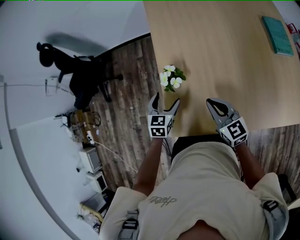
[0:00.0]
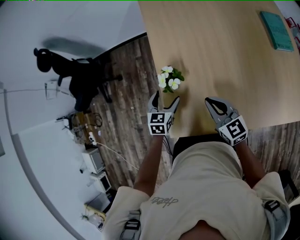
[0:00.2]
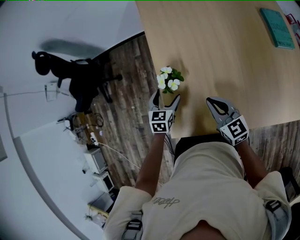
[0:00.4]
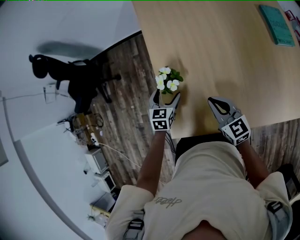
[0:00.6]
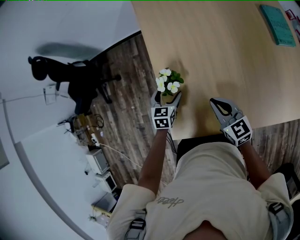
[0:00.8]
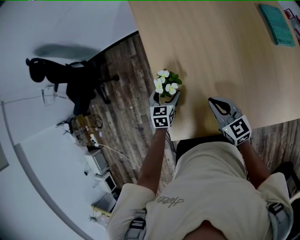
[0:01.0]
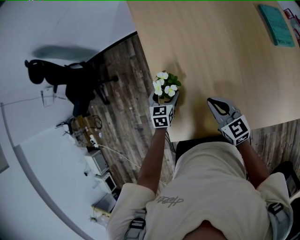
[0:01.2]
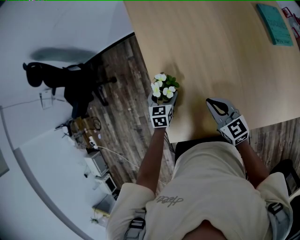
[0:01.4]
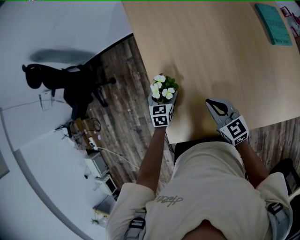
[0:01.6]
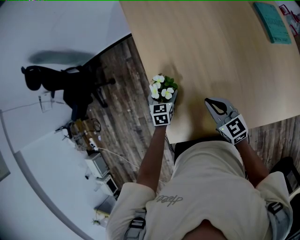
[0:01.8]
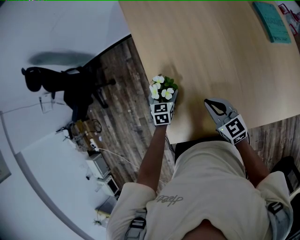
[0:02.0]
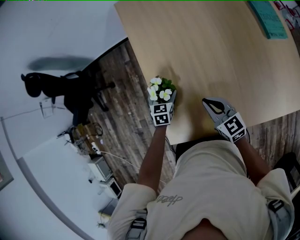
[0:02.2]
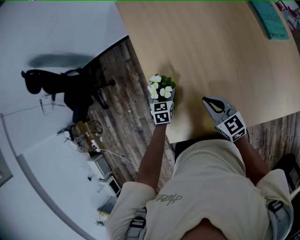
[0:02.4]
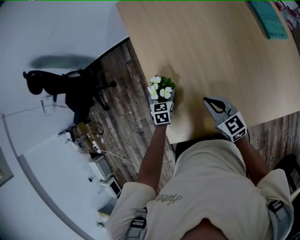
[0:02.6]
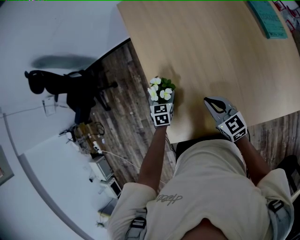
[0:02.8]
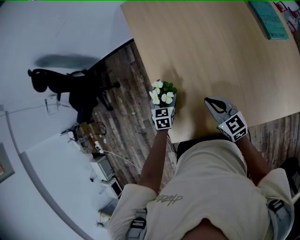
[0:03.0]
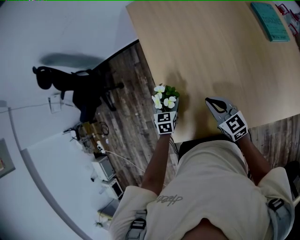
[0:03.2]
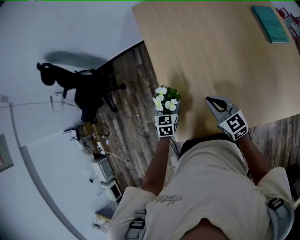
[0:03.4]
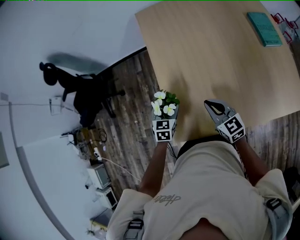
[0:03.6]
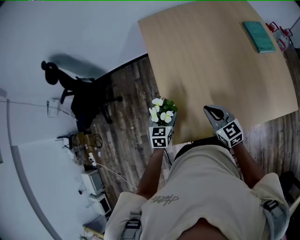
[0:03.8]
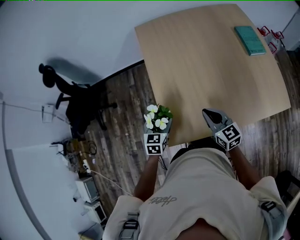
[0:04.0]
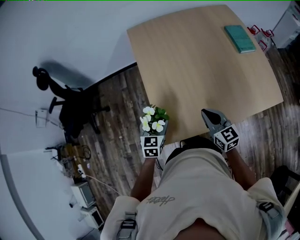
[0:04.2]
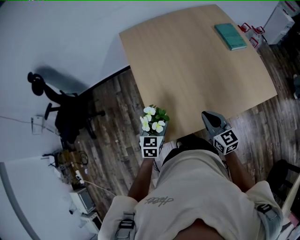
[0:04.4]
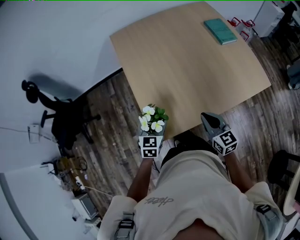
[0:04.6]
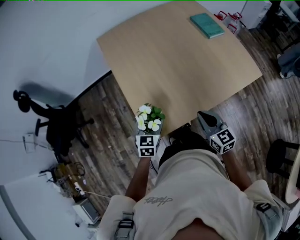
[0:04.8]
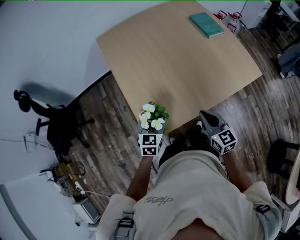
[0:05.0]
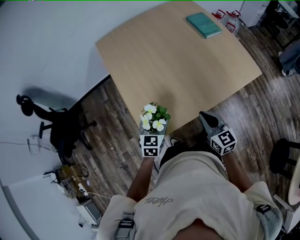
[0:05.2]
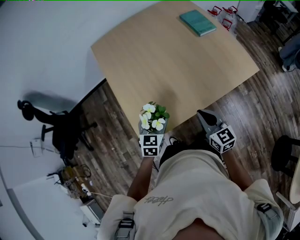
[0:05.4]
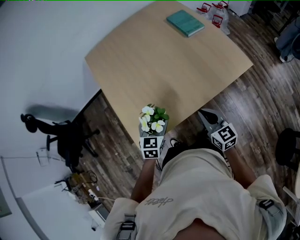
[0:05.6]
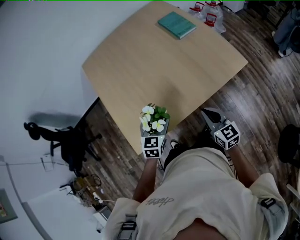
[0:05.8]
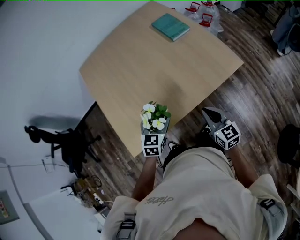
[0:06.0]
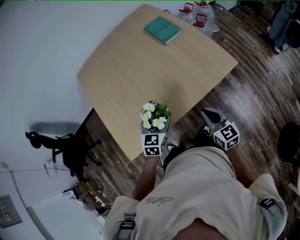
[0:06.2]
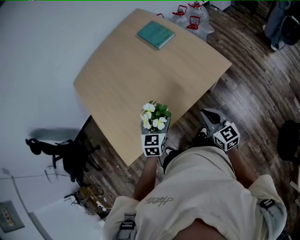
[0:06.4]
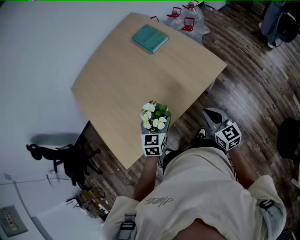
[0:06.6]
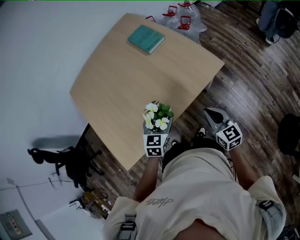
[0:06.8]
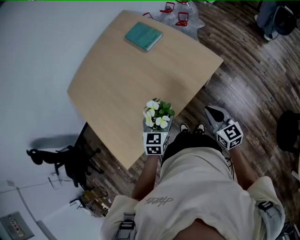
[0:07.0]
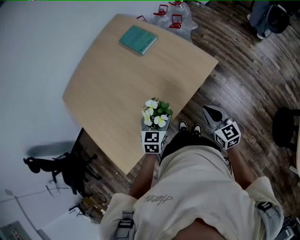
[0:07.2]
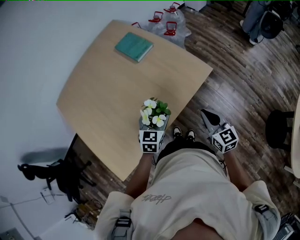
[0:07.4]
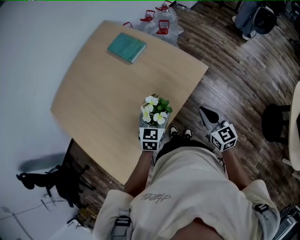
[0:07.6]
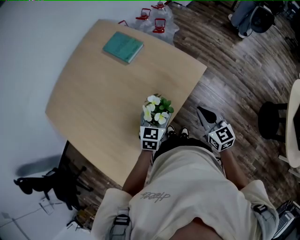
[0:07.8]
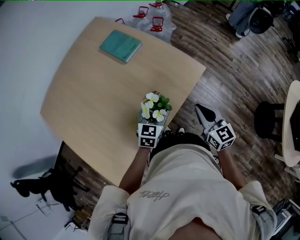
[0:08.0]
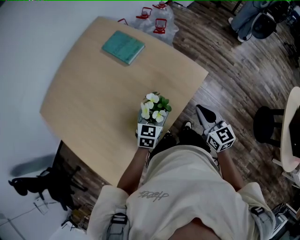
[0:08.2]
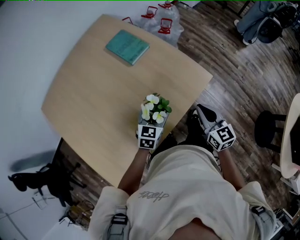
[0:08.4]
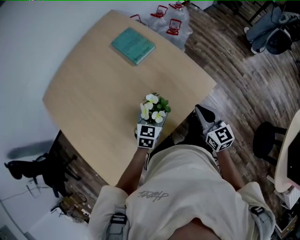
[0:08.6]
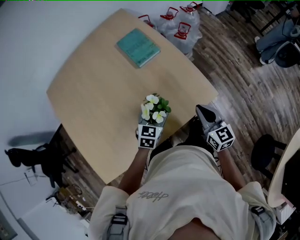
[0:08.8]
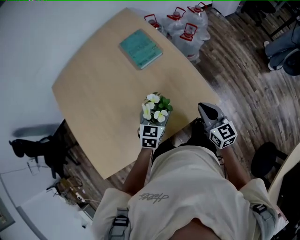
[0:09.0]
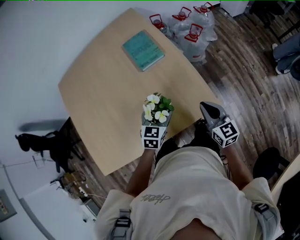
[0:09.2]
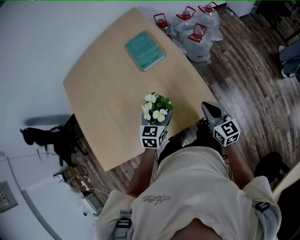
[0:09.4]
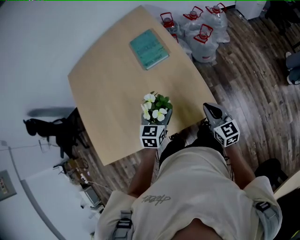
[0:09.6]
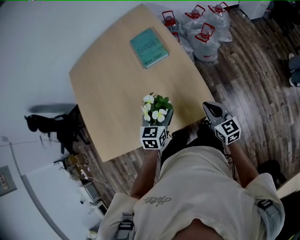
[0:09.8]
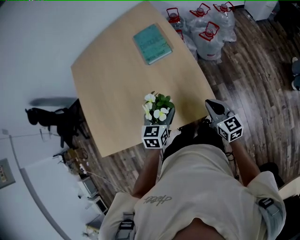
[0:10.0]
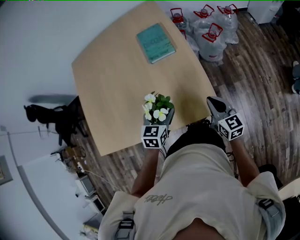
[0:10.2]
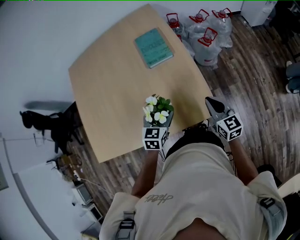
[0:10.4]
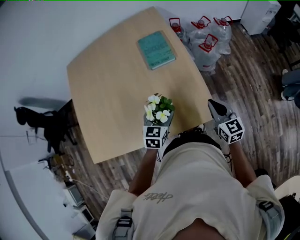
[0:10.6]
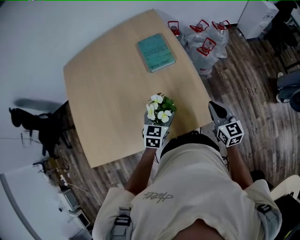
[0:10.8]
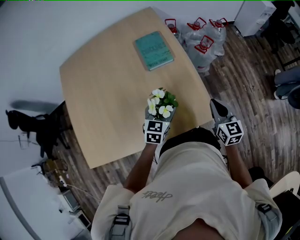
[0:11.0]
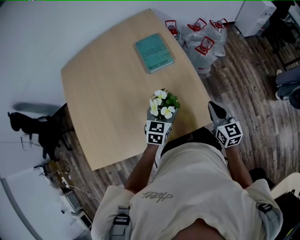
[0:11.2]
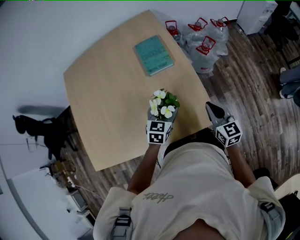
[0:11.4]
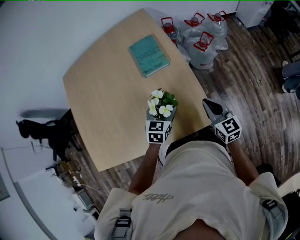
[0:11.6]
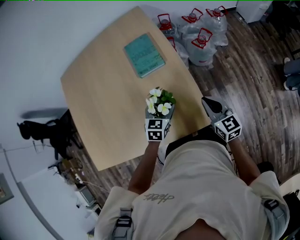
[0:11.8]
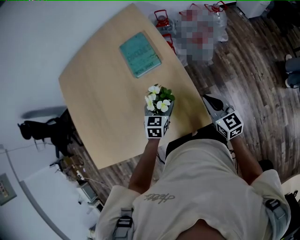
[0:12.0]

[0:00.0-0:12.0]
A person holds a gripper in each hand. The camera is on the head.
0.0 to 1.6 s: The right gripper shifts by some 5 cm. The left gripper moves downward and forward, some 10 cm.
1.6 to 3.0 s: The grippers stay close to where they were, moving slightly.
3.0 to 4.4 s: Both grippers move backward and upward, roughly 15 cm. The right gripper swivels about 20 degrees.
4.4 to 6.0 s: The grippers both shift to the right by some 25 cm.
6.0 to 7.6 s: Both grippers travel together to the right and forward, some 20 cm. The left gripper changes its angle by about 20 degrees.
7.6 to 9.0 s: Both grippers move forward, roughly 15 cm.
9.0 to 10.4 s: The right gripper is displaced to the right and forward by about 10 cm.
10.4 to 12.0 s: The left gripper heads forward and to the right, covering approximately 15 cm. The right gripper goes some 5 cm forward.

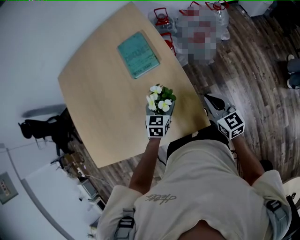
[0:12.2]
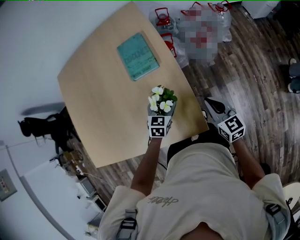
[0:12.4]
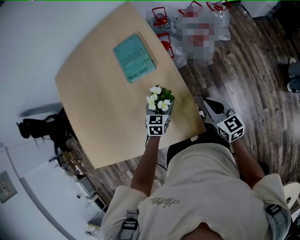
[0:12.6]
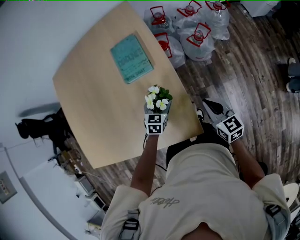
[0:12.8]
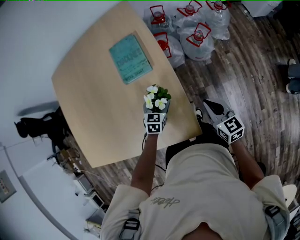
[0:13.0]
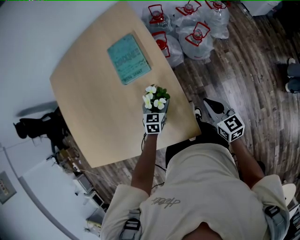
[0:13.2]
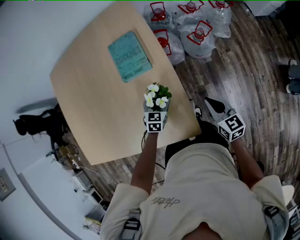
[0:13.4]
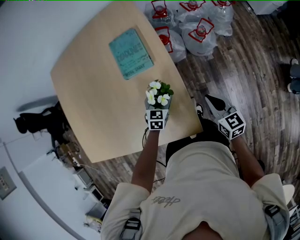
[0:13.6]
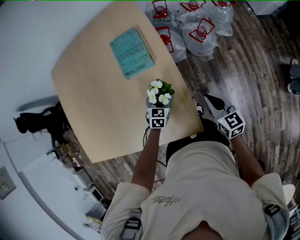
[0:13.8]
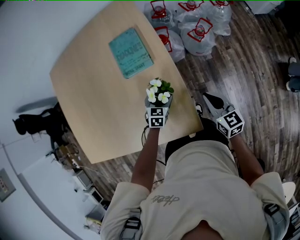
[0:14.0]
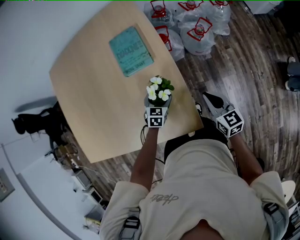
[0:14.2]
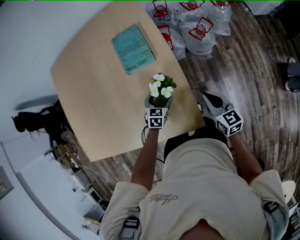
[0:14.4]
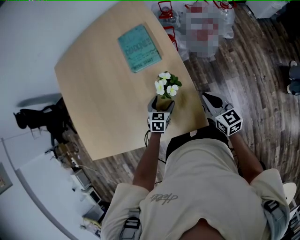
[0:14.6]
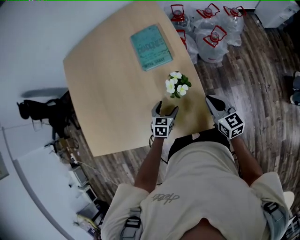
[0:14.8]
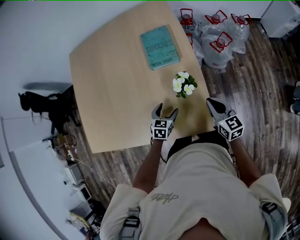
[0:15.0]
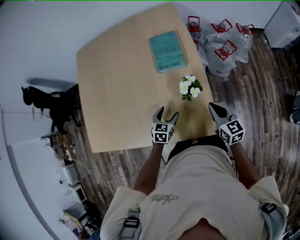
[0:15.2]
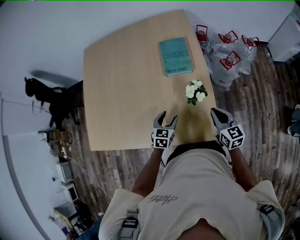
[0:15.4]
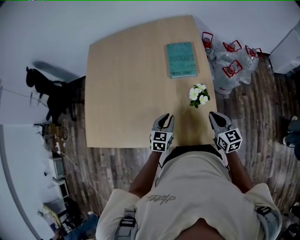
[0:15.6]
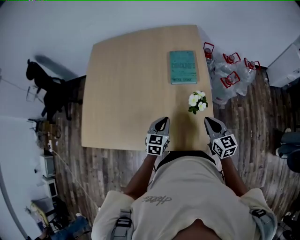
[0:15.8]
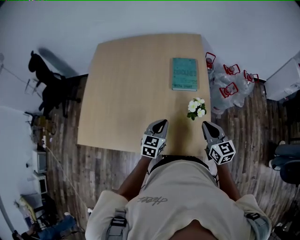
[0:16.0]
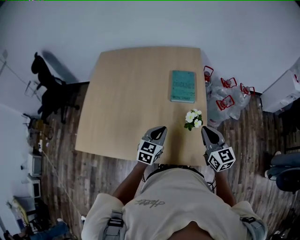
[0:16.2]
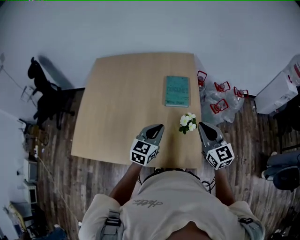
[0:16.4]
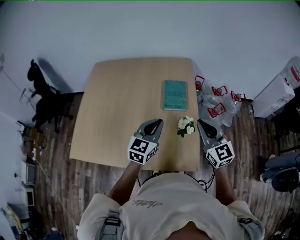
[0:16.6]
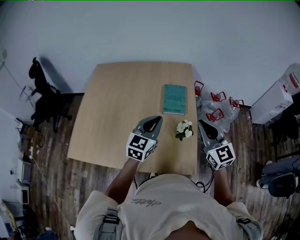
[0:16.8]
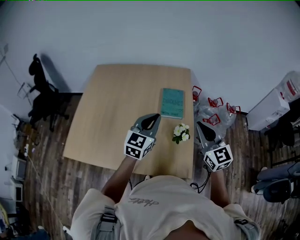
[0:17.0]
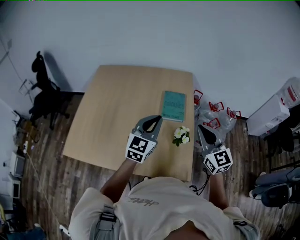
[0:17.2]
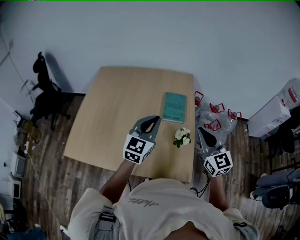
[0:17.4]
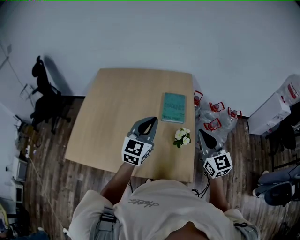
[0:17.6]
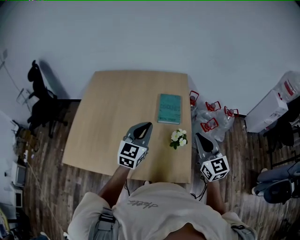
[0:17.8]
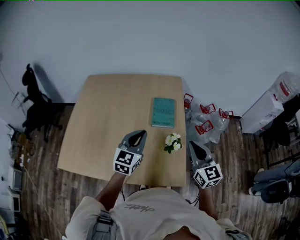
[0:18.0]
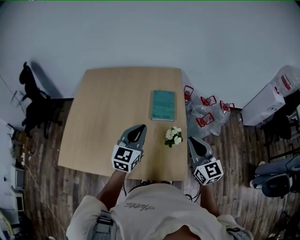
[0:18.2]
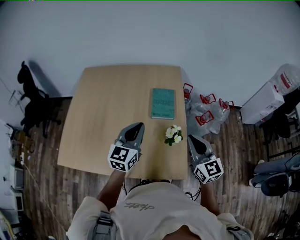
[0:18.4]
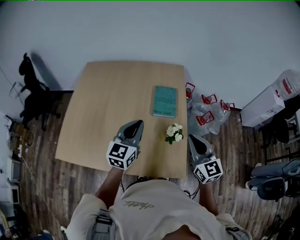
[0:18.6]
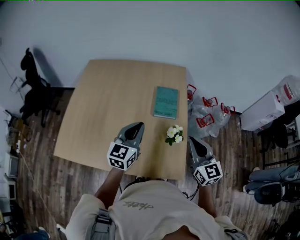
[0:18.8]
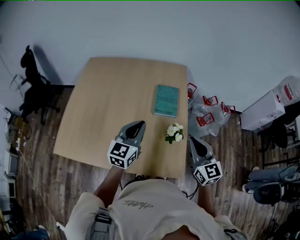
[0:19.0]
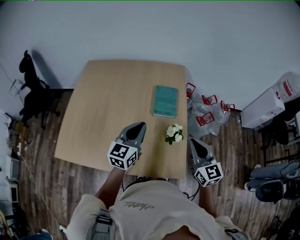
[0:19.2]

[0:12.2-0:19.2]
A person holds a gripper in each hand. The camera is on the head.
12.2 to 13.6 s: The right gripper changes place by approximately 5 cm; the left gripper moves downward, some 5 cm.
13.6 to 15.0 s: The left gripper heads to the left and backward, covering about 15 cm; the right gripper shifts some 10 cm to the left.
15.0 to 16.4 s: The two grippers go roughly 20 cm upward. The right gripper changes its angle by roughly 30 degrees; the left gripper swivels roughly 30 degrees, and closes up.
16.4 to 17.8 s: The left gripper shifts some 10 cm upward.
17.8 to 19.2 s: The grippers make only small movements.

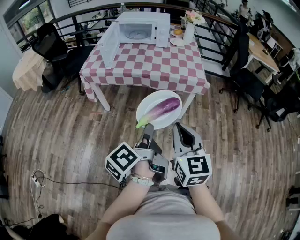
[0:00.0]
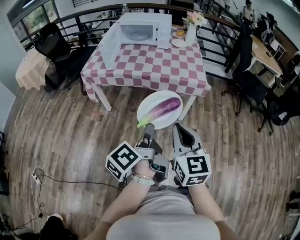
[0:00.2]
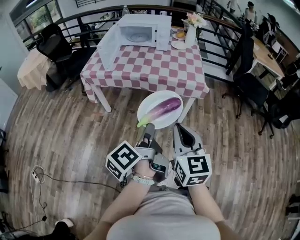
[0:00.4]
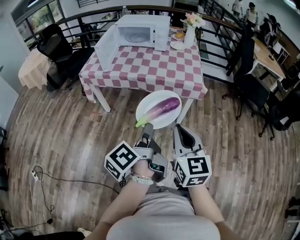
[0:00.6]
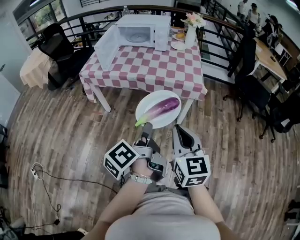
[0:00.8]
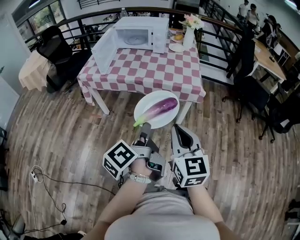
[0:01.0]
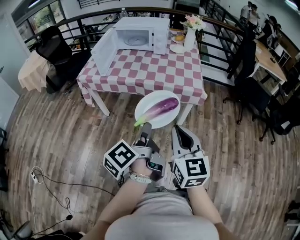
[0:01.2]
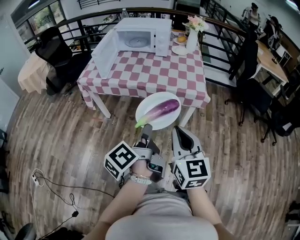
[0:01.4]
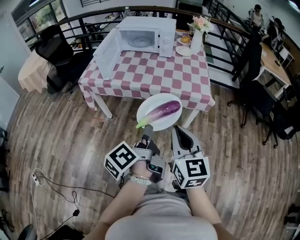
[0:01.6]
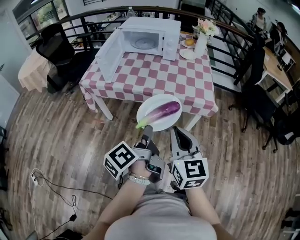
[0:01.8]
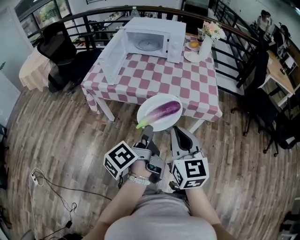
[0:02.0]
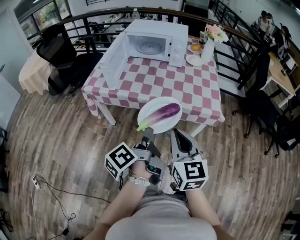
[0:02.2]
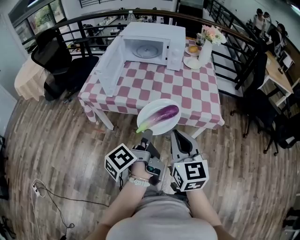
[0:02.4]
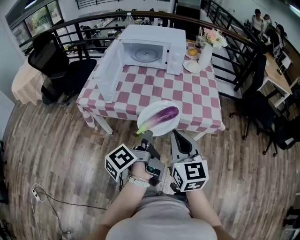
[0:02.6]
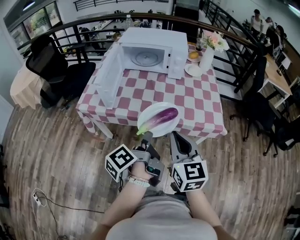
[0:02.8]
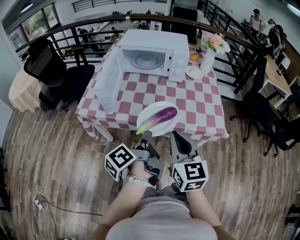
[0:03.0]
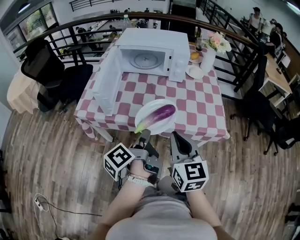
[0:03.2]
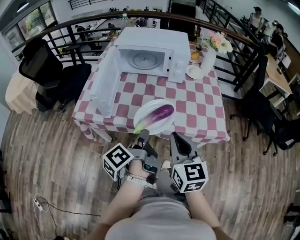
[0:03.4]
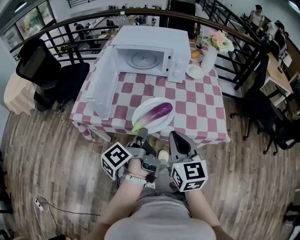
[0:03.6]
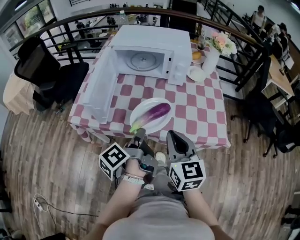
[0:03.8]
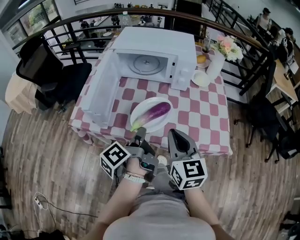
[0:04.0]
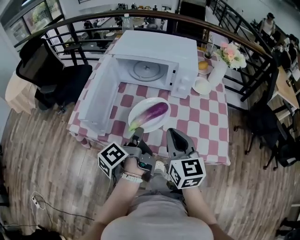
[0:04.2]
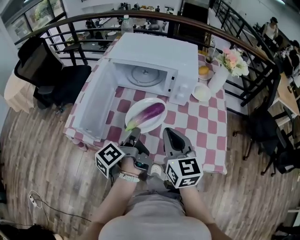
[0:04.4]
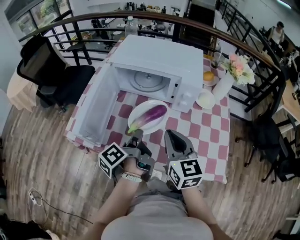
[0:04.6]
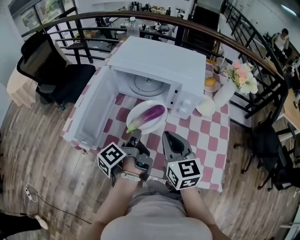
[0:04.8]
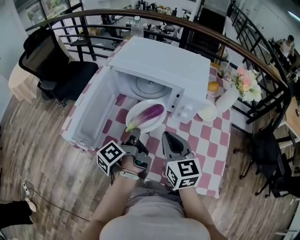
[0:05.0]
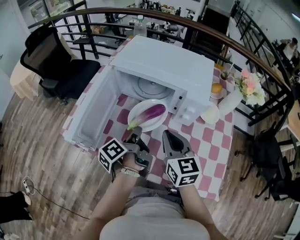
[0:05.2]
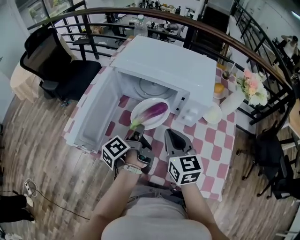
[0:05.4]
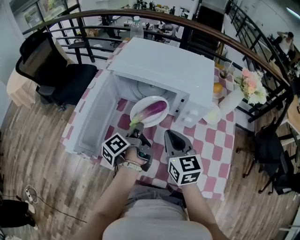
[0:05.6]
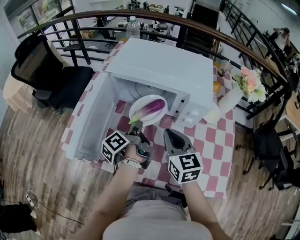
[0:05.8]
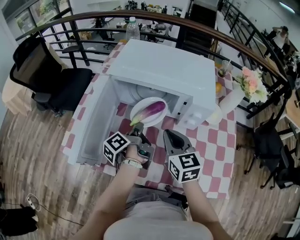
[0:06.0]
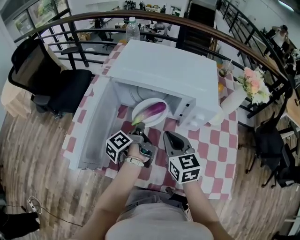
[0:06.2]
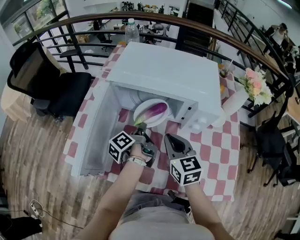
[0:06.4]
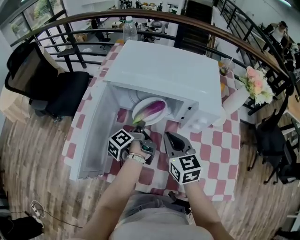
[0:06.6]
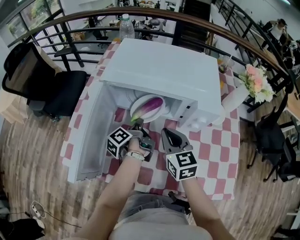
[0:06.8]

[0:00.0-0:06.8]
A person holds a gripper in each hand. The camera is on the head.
0.0 to 1.4 s: The right gripper moves approximately 10 cm.
1.4 to 2.8 s: The right gripper ends up about 25 cm from where it was.
2.8 to 4.0 s: The right gripper changes place by about 15 cm.
4.0 to 5.4 s: The right gripper shifts by roughly 20 cm.
5.4 to 6.8 s: The right gripper shifts by about 10 cm.
